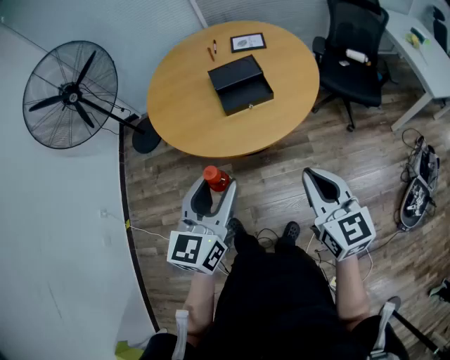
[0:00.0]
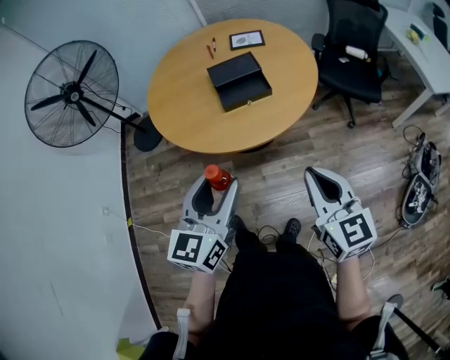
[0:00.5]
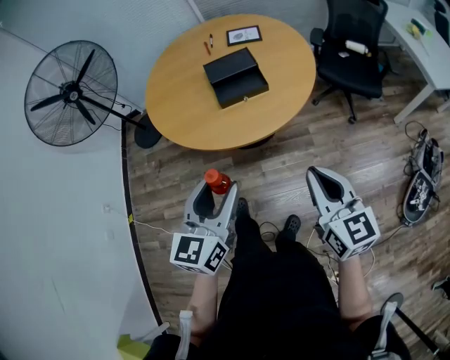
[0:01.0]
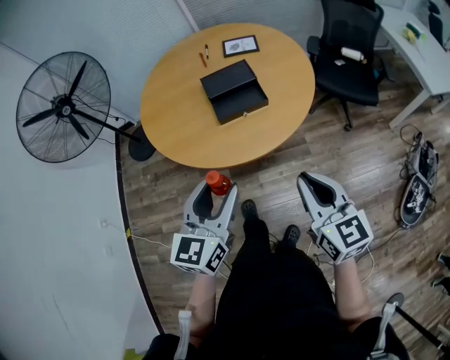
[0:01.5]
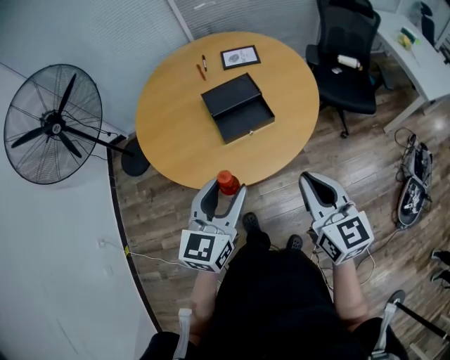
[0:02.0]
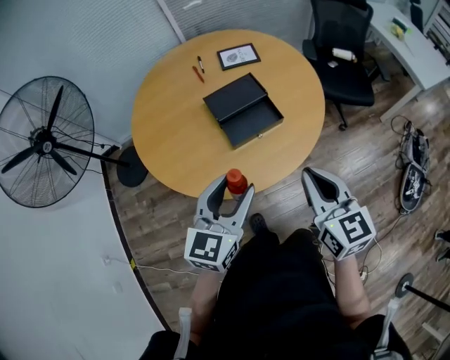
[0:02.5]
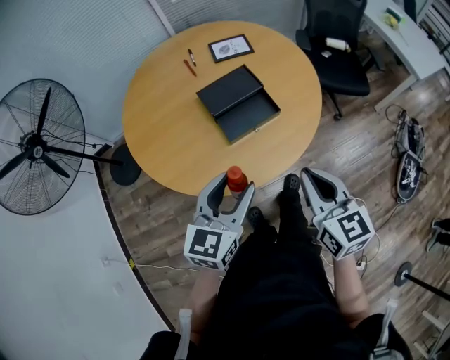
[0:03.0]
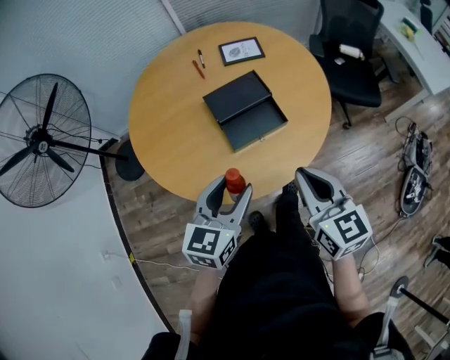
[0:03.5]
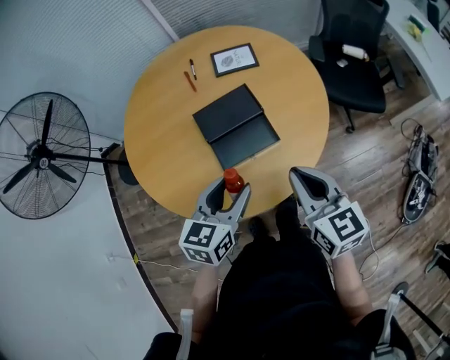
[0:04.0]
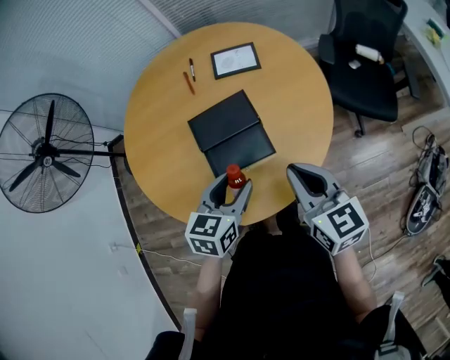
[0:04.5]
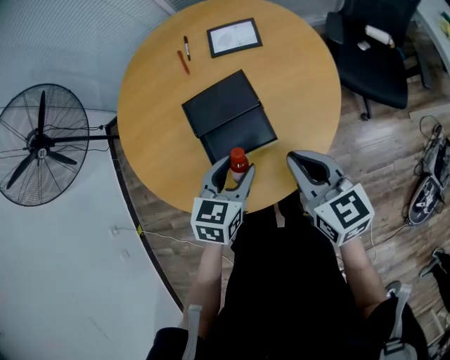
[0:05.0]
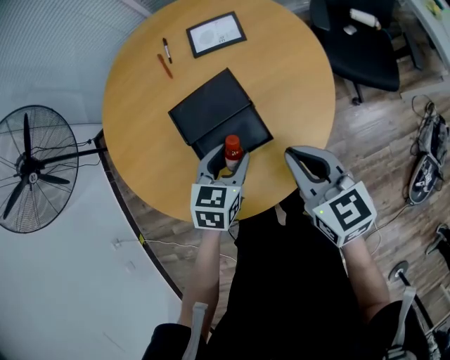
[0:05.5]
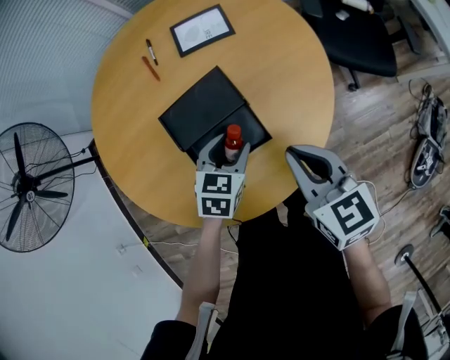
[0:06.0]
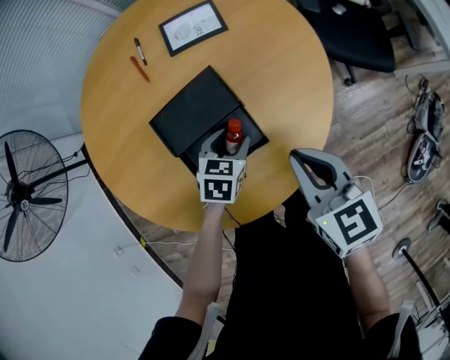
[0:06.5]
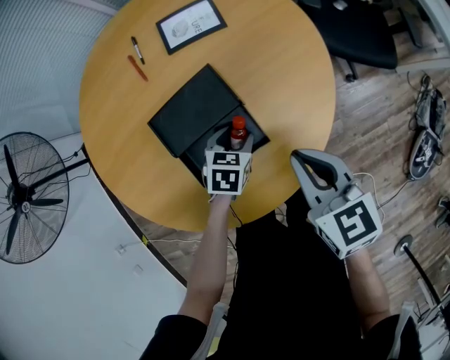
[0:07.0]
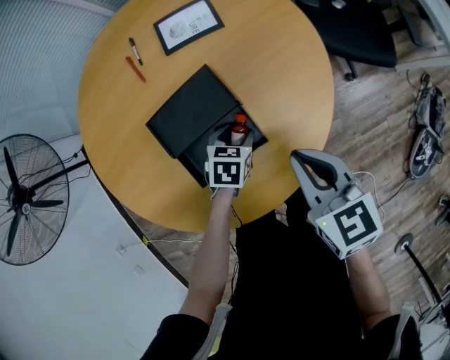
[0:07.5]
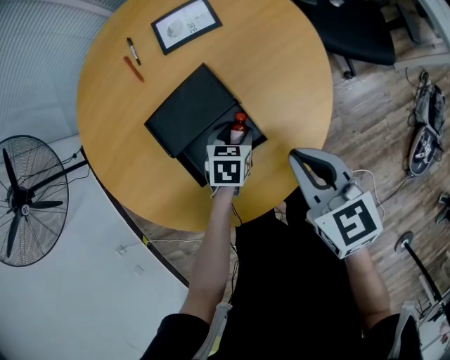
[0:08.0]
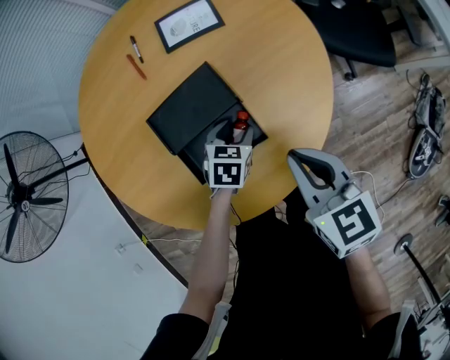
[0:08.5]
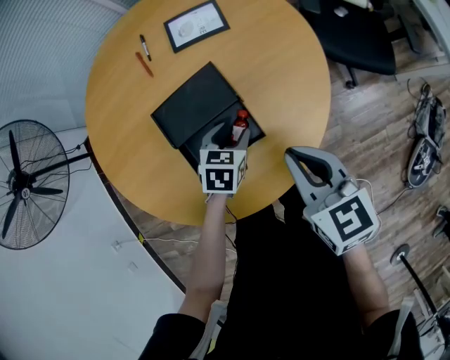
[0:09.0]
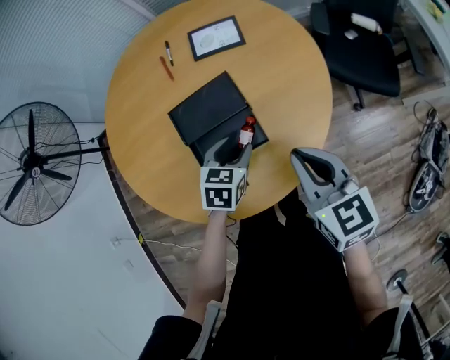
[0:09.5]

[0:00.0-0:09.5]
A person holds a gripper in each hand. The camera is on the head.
0:00.0 to 0:02.0: The two grippers go roughly 10 cm forward.
0:02.0 to 0:04.0: The right gripper moves forward, roughly 15 cm. The left gripper is displaced forward and downward by some 20 cm.
0:04.0 to 0:05.5: The right gripper shifts about 10 cm forward and downward. Meanwhile the left gripper shifts approximately 20 cm downward, forward and to the right.
0:05.5 to 0:07.5: The right gripper ends up about 5 cm from where it was, while the left gripper moves downward, roughly 15 cm.
0:07.5 to 0:09.5: The left gripper moves upward, some 10 cm; the right gripper is displaced upward by some 5 cm.

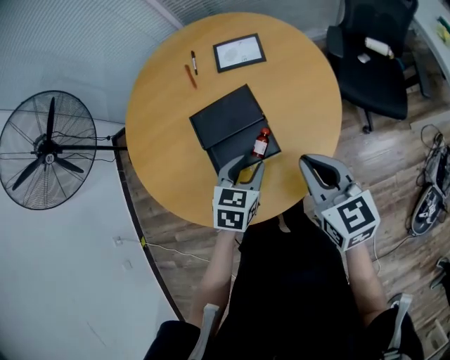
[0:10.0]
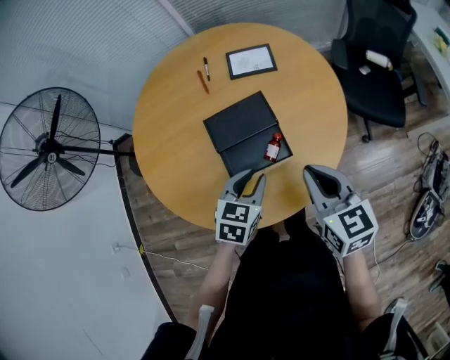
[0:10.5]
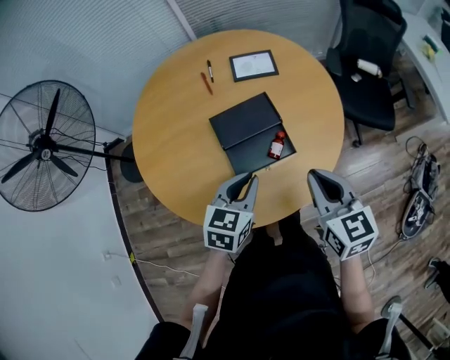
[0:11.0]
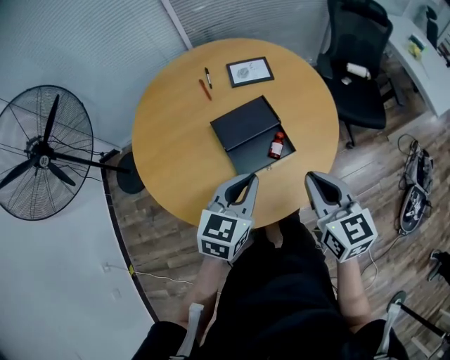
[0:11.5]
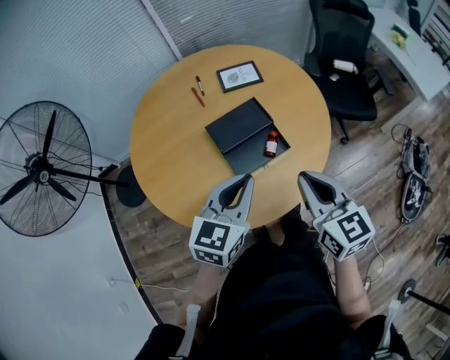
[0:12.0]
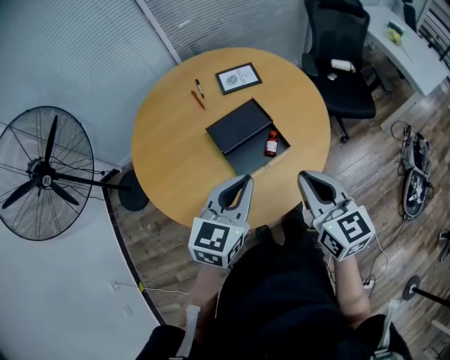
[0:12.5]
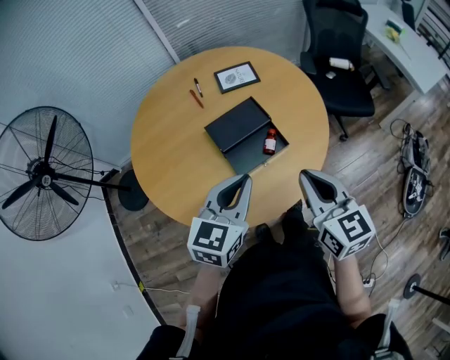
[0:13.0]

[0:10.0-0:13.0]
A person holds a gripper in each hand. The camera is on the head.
0:10.0 to 0:11.5: The right gripper goes some 15 cm to the left, backward and upward. The left gripper goes approximately 20 cm upward, to the left and backward, turns by about 20 degrees, and closes.
0:11.5 to 0:13.0: The left gripper ends up approximately 5 cm from where it was.

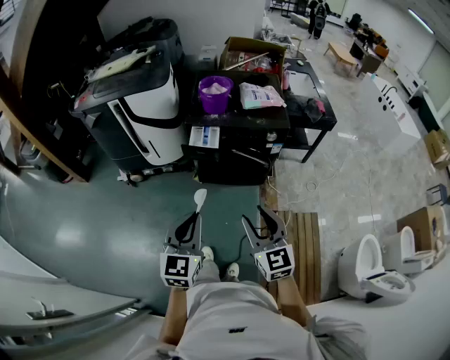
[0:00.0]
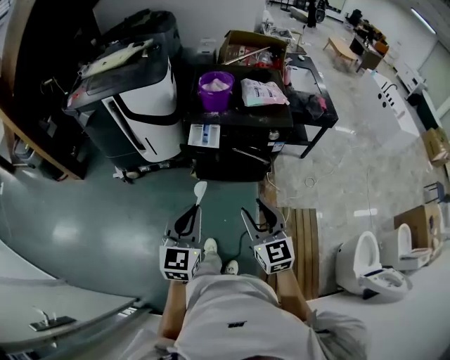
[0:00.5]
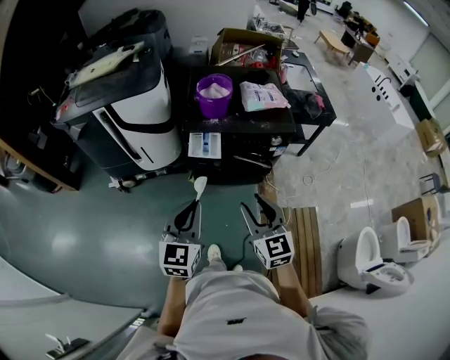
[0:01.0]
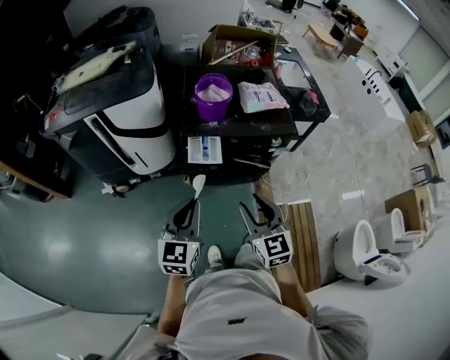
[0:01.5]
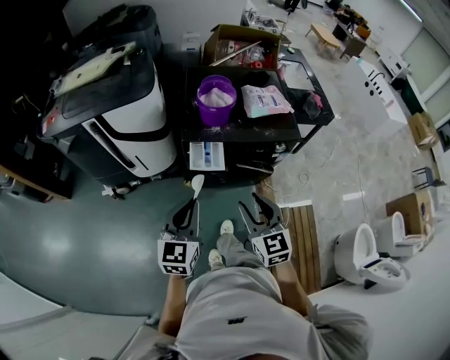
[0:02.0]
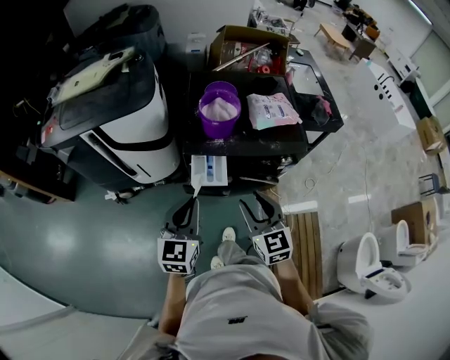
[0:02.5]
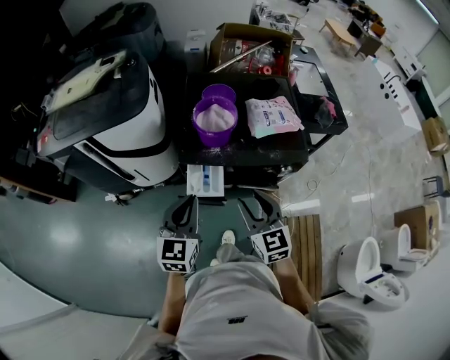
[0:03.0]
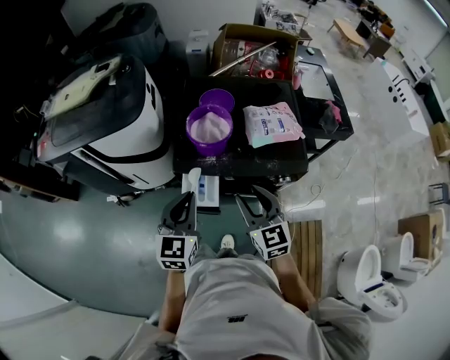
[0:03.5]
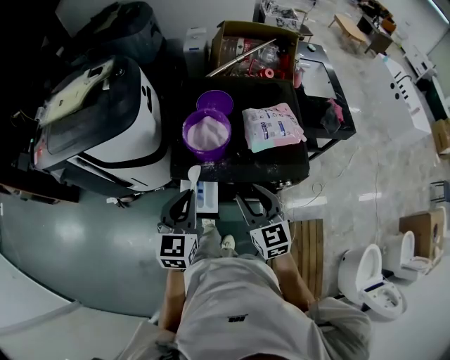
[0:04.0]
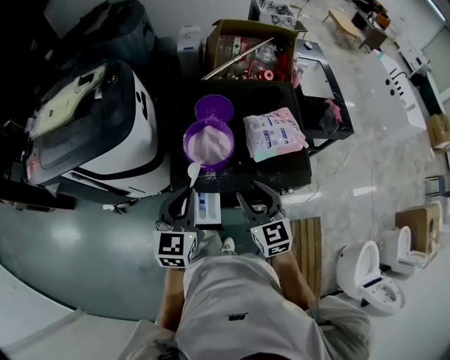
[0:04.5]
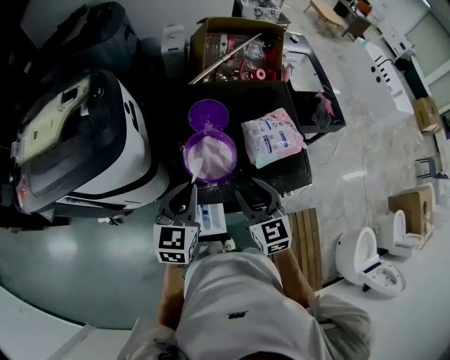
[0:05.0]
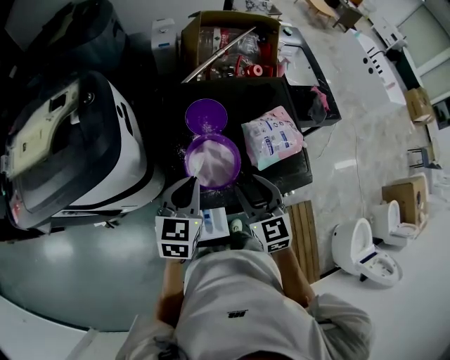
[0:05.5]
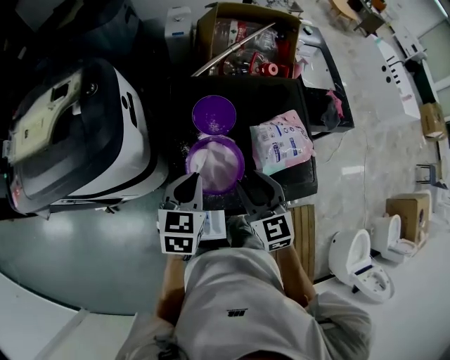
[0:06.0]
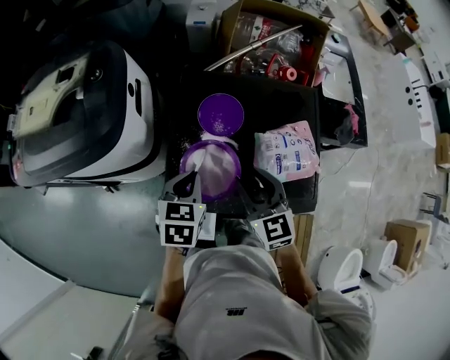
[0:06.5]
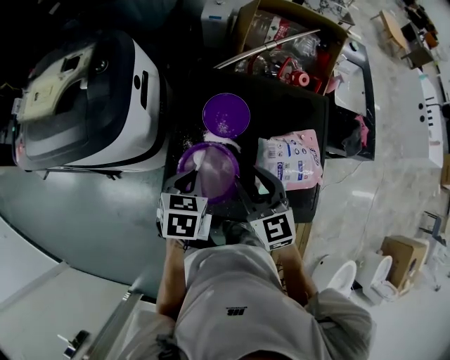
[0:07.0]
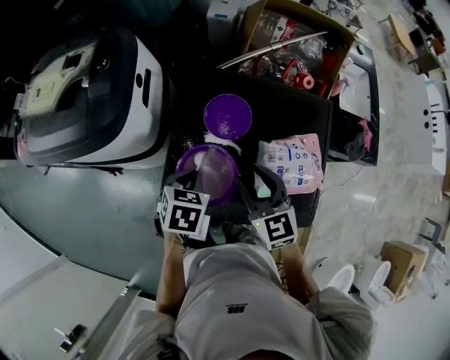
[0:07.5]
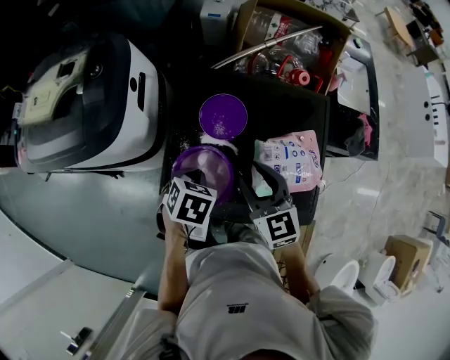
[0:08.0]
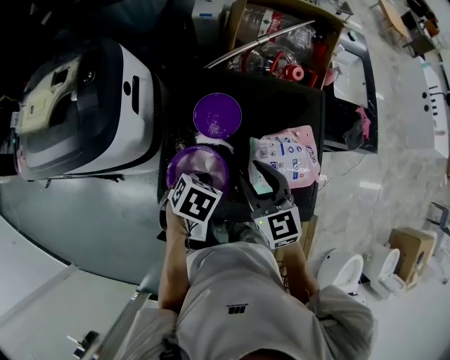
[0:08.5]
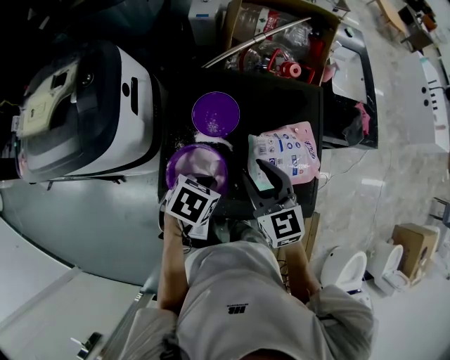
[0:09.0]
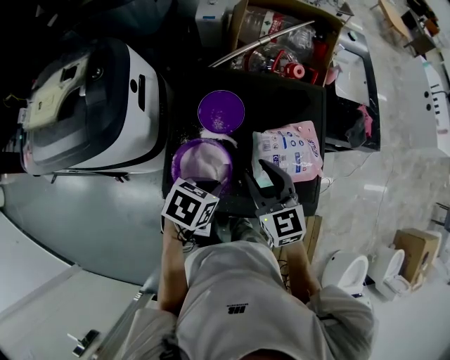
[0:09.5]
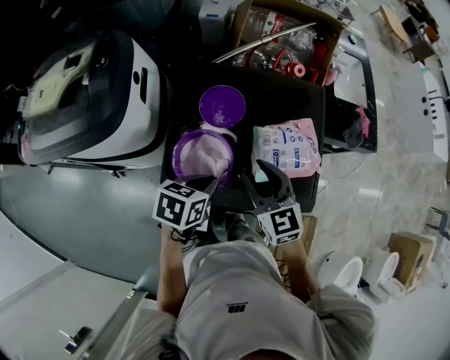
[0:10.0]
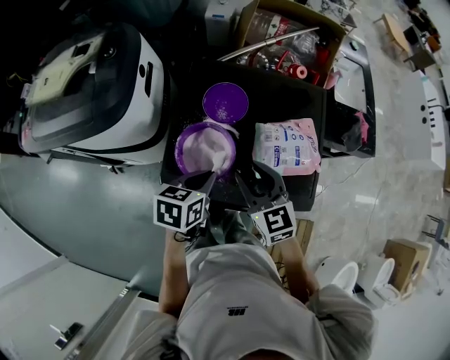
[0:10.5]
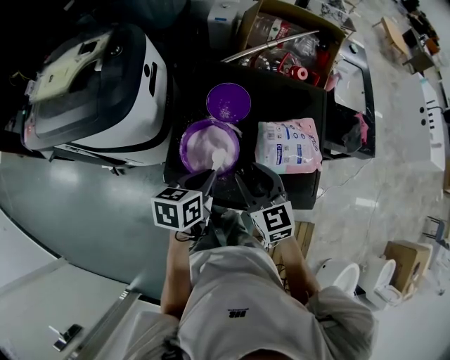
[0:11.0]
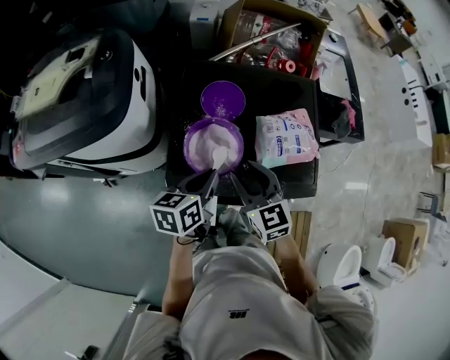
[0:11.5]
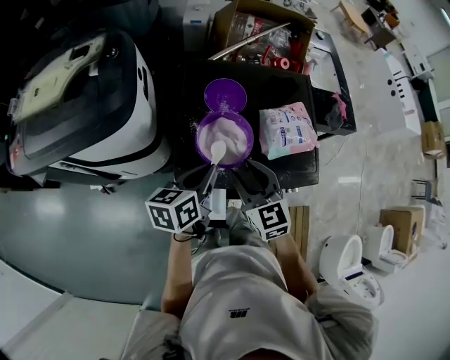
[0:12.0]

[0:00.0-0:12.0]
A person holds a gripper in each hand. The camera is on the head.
0:00.0 to 0:02.0: The left gripper shifts about 25 cm forward. Meanwhile the right gripper shifts approximately 25 cm forward and to the left.
0:02.0 to 0:04.0: Both grippers travel together forward, about 25 cm.
0:04.0 to 0:06.0: Both grippers travel together forward, about 20 cm.
0:06.0 to 0:08.0: The left gripper goes approximately 10 cm downward and to the right, and tilts its fingers roughly 30 degrees downward, while the right gripper travels forward and to the right by approximately 10 cm.
0:08.0 to 0:10.0: The left gripper heads backward and to the right, covering some 10 cm, and rotates roughly 30 degrees; the right gripper changes place by approximately 5 cm.
0:10.0 to 0:12.0: The left gripper heads to the left, covering some 10 cm, and swivels about 30 degrees, while the right gripper goes roughly 15 cm to the left and backward.

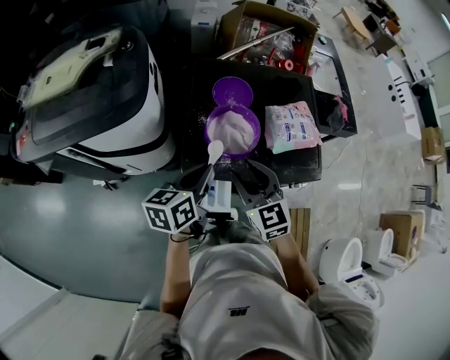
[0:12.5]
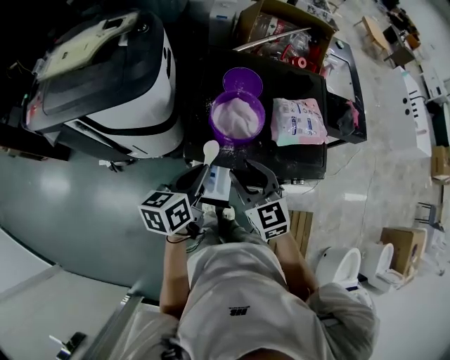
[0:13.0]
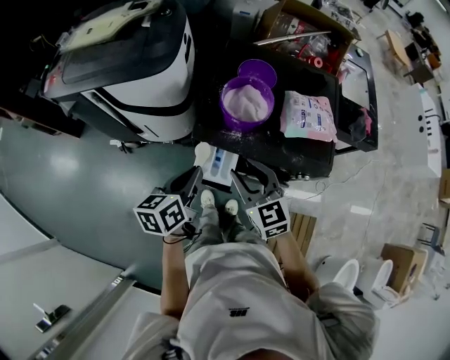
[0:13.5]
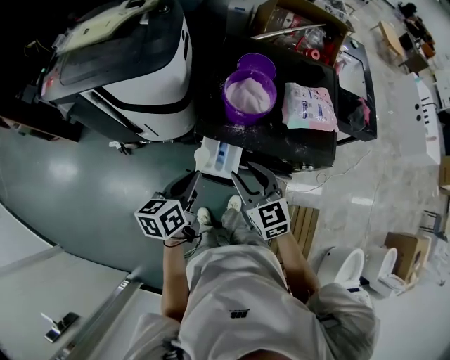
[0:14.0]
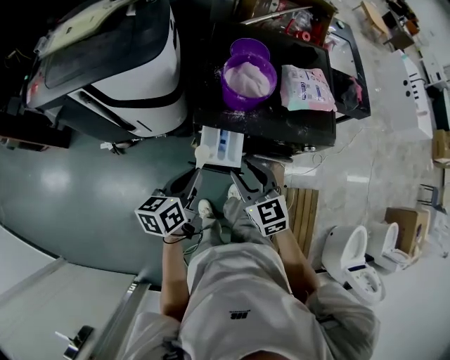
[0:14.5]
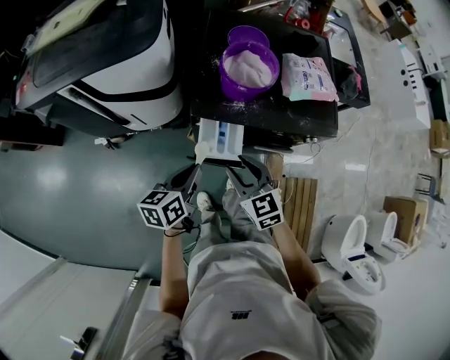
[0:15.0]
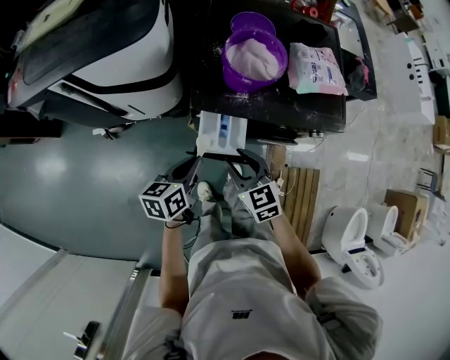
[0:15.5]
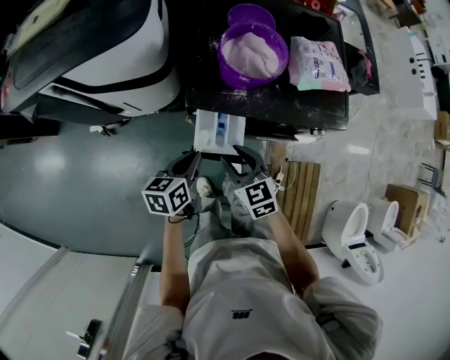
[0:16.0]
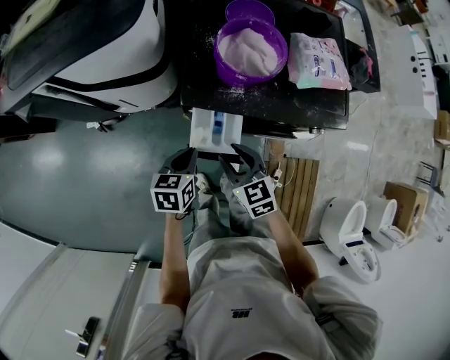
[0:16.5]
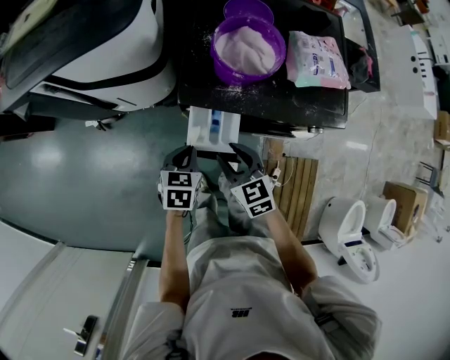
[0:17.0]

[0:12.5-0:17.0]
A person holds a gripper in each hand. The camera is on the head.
0:12.5 to 0:14.5: The right gripper travels backward and downward by approximately 15 cm. The left gripper moves backward, approximately 15 cm.
0:14.5 to 0:17.0: The two grippers go about 15 cm downward. The left gripper turns by roughly 40 degrees.
